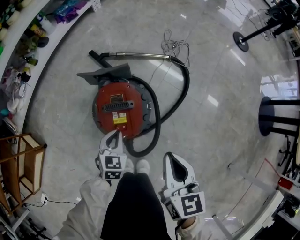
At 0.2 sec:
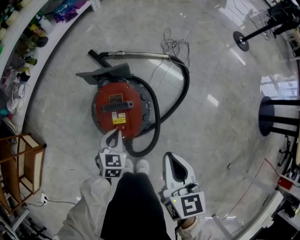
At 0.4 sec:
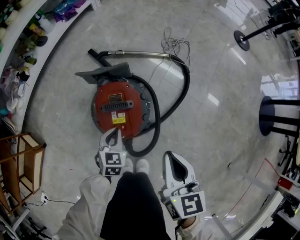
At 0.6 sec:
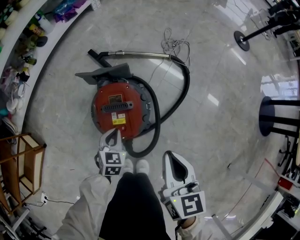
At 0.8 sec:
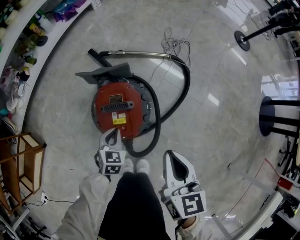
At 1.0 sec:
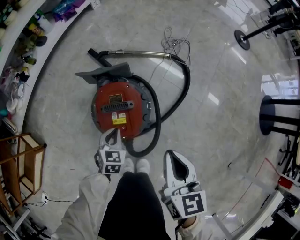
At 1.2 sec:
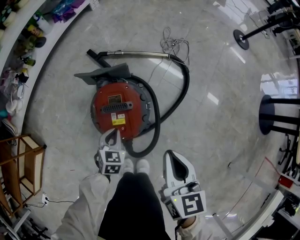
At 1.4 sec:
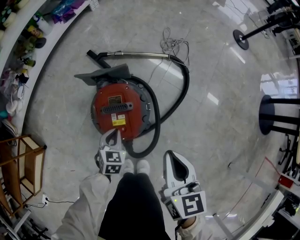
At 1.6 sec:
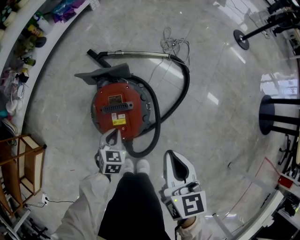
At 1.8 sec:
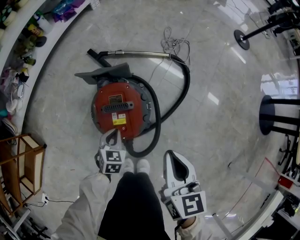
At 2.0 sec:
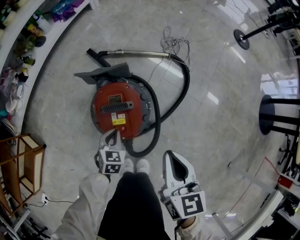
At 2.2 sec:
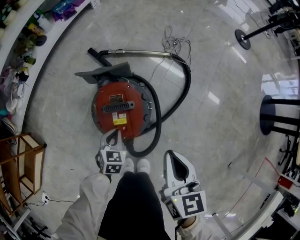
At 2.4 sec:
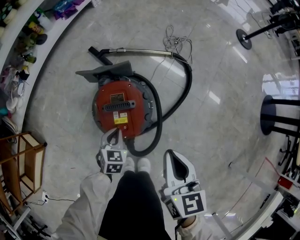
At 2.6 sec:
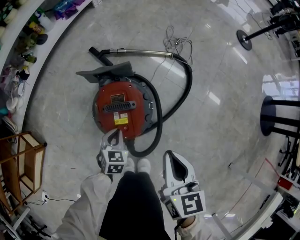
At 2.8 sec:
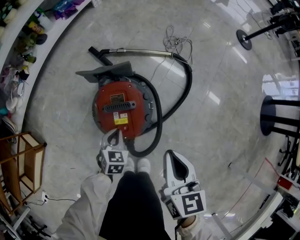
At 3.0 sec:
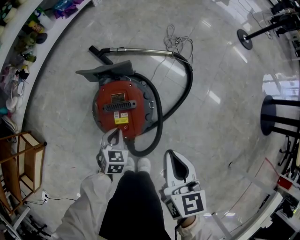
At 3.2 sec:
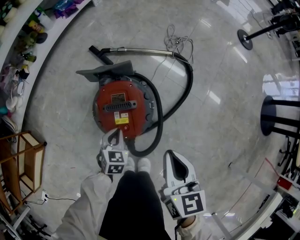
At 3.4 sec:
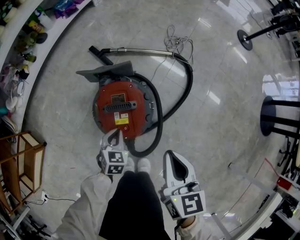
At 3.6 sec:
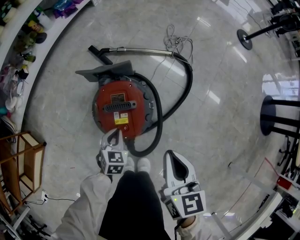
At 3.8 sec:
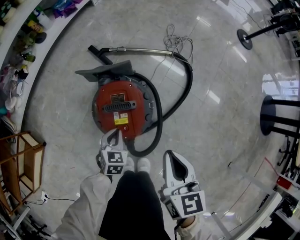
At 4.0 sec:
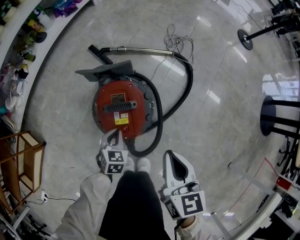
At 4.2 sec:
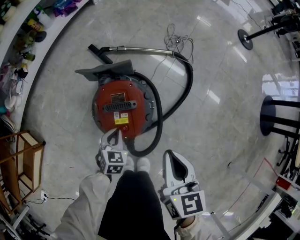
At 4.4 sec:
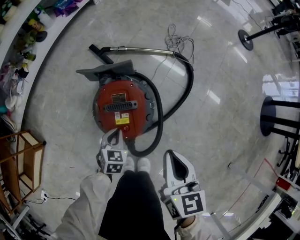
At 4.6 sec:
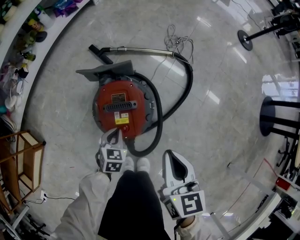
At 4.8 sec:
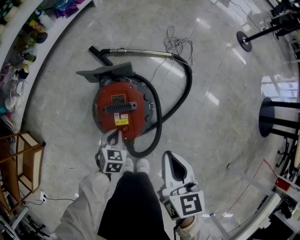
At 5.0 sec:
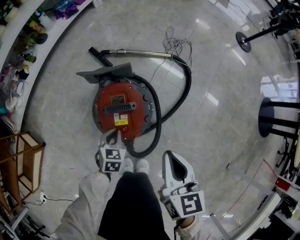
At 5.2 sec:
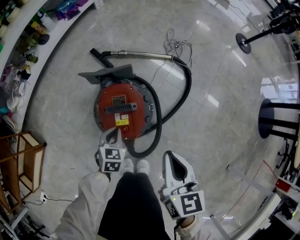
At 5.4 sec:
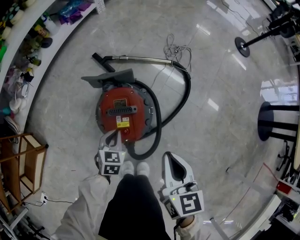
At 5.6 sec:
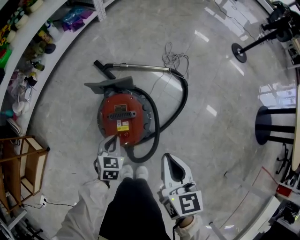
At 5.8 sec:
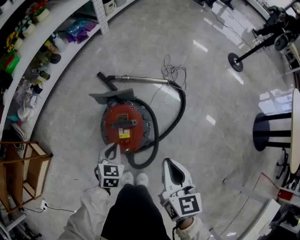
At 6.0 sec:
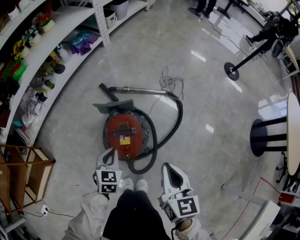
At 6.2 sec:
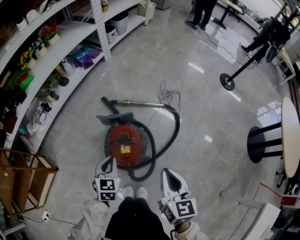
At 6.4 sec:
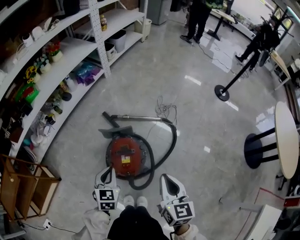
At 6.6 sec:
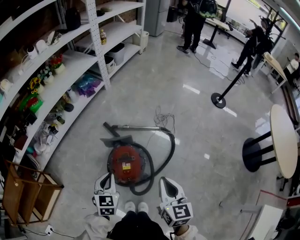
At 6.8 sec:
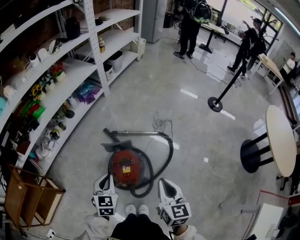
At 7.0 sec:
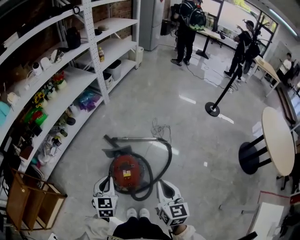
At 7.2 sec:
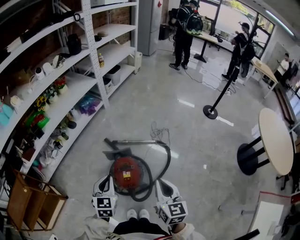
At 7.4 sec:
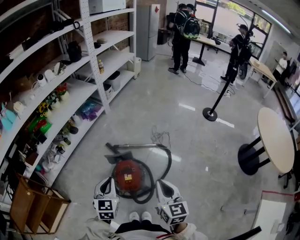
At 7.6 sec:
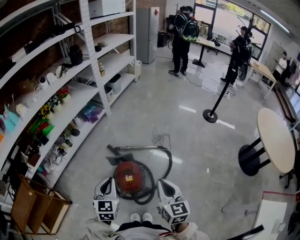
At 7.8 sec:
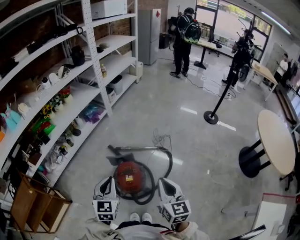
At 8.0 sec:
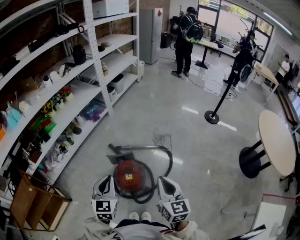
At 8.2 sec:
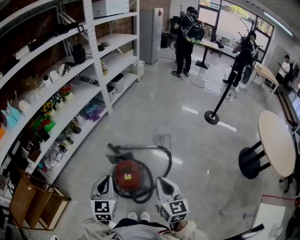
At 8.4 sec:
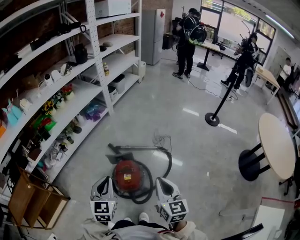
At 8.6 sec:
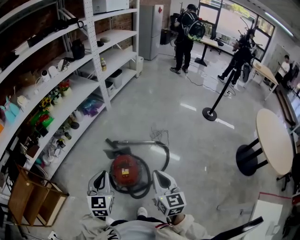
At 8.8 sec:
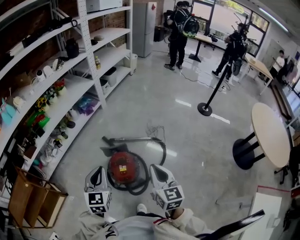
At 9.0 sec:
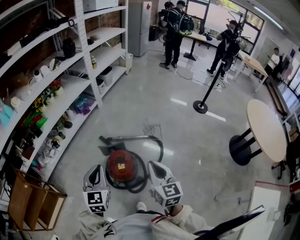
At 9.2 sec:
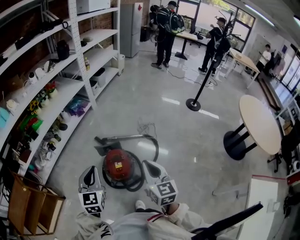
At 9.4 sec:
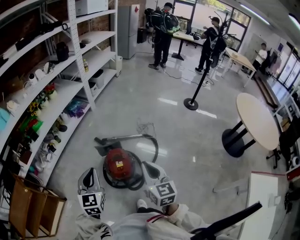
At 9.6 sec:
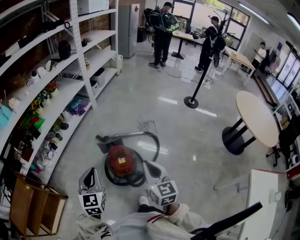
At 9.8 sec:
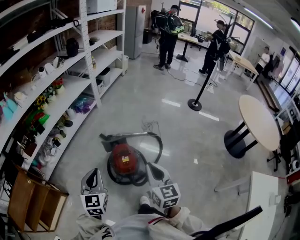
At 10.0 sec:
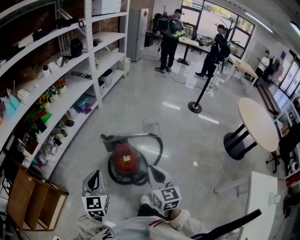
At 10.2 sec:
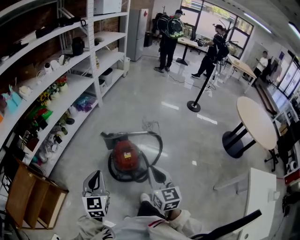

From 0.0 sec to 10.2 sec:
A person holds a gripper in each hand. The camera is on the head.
From 0.0 sec to 3.0 sec: The grippers move only a little.
From 3.0 sec to 4.4 sec: The two grippers keep their place.
From 4.4 sec to 5.8 sec: The left gripper shifts roughly 10 cm upward. Meanwhile the right gripper heads upward, covering roughly 5 cm.
From 5.8 sec to 7.2 sec: The right gripper is displaced upward by some 20 cm. Meanwhile the left gripper moves upward, roughly 30 cm, and rotates some 20 degrees.
From 7.2 sec to 8.8 sec: The left gripper heads upward, covering roughly 10 cm.
From 8.8 sec to 10.2 sec: Both grippers travel together backward and to the left, about 20 cm.

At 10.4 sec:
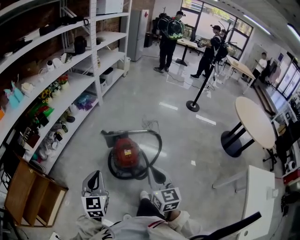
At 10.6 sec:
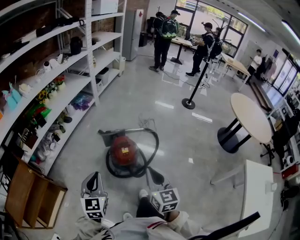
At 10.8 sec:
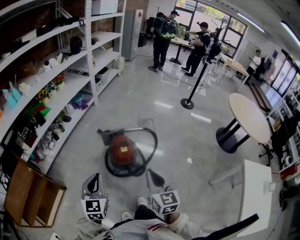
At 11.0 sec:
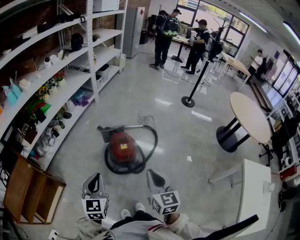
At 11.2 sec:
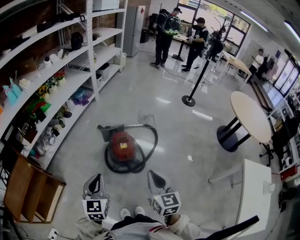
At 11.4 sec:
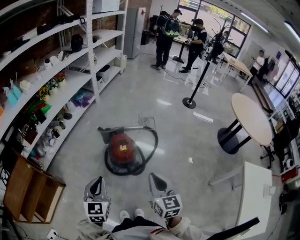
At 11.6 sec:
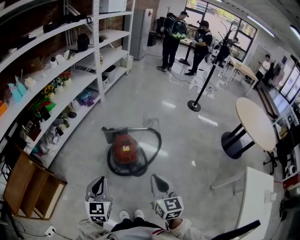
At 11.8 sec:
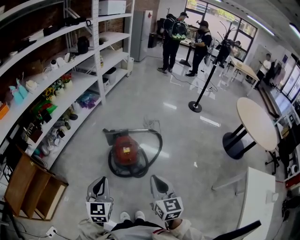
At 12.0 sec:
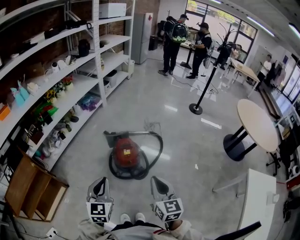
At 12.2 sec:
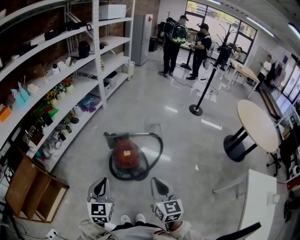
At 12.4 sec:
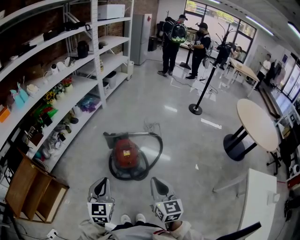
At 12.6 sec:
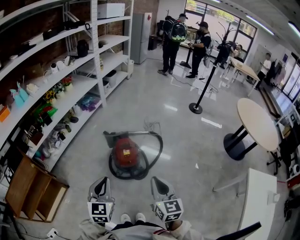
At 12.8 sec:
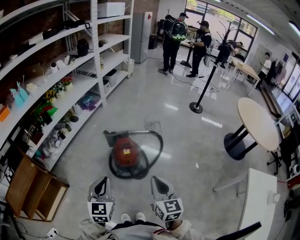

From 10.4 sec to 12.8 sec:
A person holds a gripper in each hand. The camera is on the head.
From 10.4 sec to 11.6 sec: Both grippers travel together backward, approximately 5 cm.
From 11.6 sec to 12.8 sec: The grippers stay close to where they were, moving slightly.

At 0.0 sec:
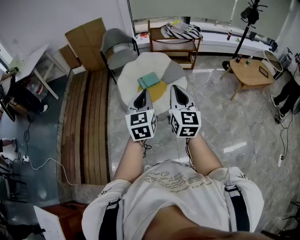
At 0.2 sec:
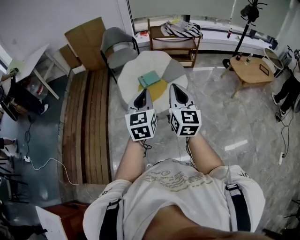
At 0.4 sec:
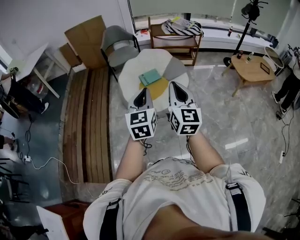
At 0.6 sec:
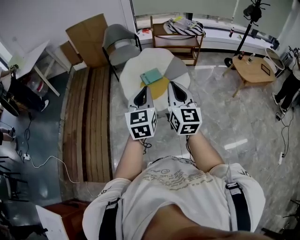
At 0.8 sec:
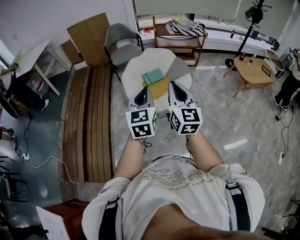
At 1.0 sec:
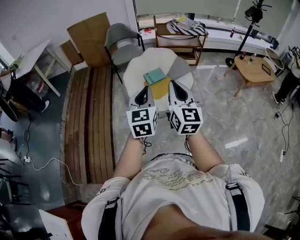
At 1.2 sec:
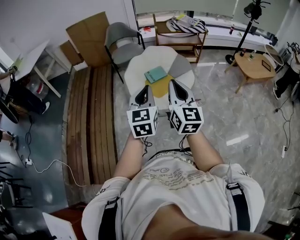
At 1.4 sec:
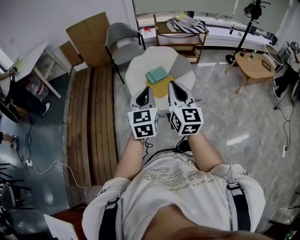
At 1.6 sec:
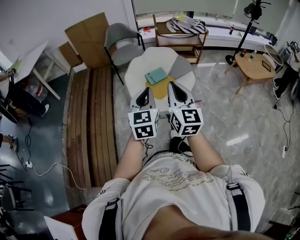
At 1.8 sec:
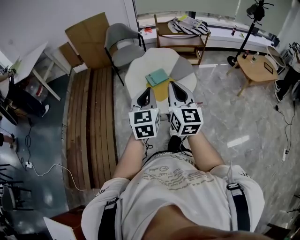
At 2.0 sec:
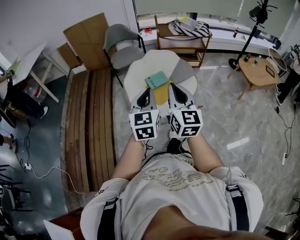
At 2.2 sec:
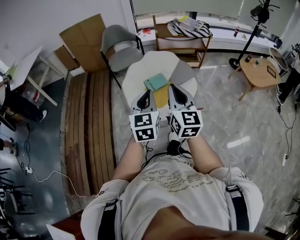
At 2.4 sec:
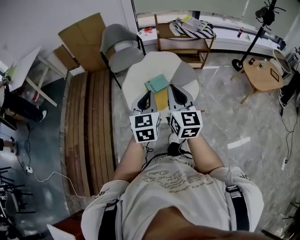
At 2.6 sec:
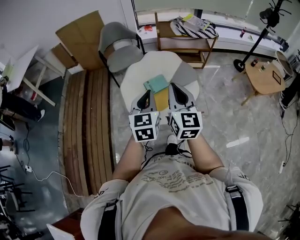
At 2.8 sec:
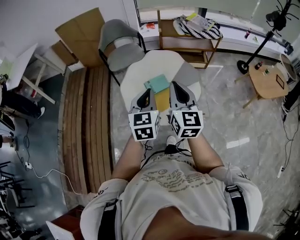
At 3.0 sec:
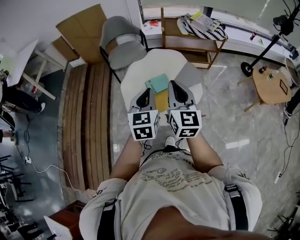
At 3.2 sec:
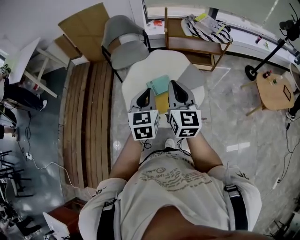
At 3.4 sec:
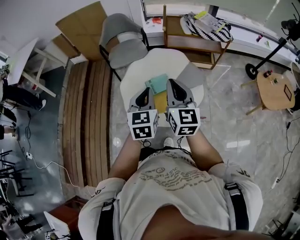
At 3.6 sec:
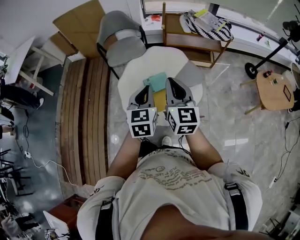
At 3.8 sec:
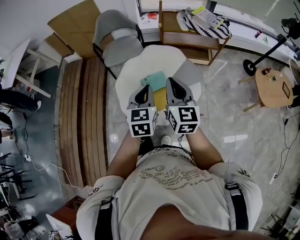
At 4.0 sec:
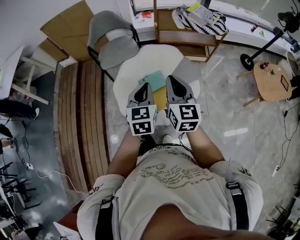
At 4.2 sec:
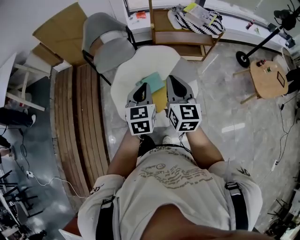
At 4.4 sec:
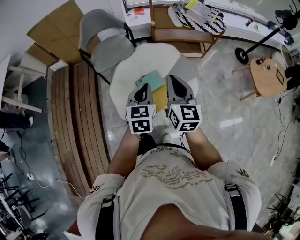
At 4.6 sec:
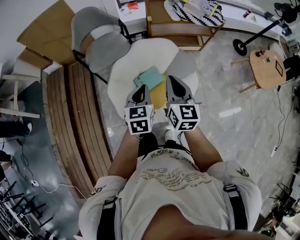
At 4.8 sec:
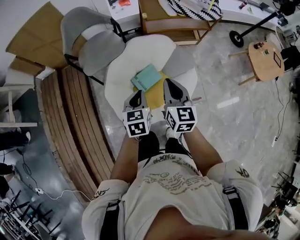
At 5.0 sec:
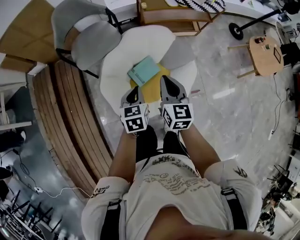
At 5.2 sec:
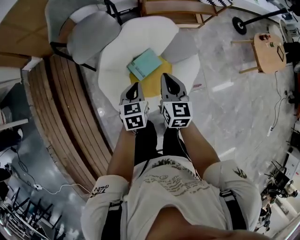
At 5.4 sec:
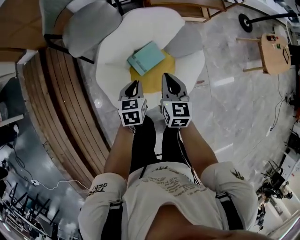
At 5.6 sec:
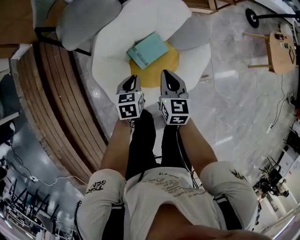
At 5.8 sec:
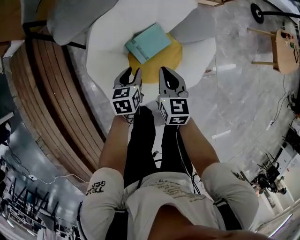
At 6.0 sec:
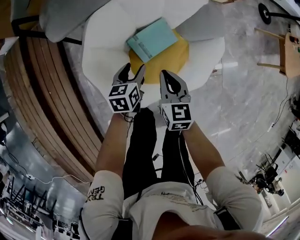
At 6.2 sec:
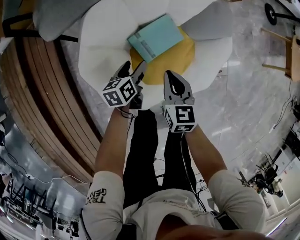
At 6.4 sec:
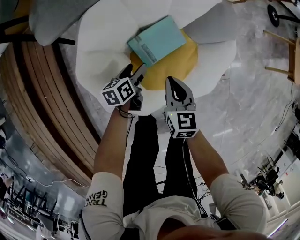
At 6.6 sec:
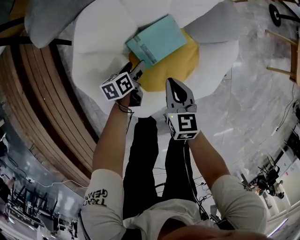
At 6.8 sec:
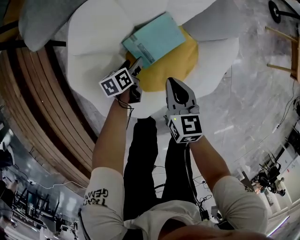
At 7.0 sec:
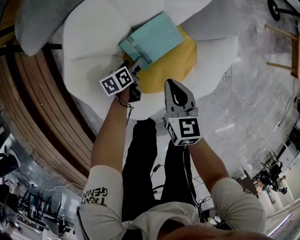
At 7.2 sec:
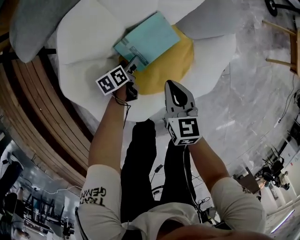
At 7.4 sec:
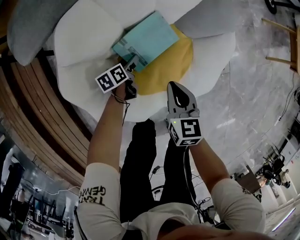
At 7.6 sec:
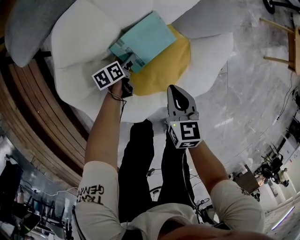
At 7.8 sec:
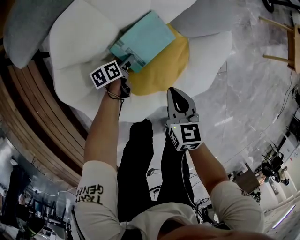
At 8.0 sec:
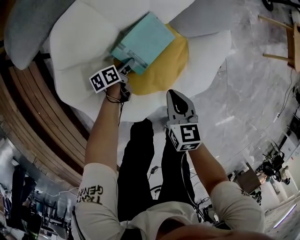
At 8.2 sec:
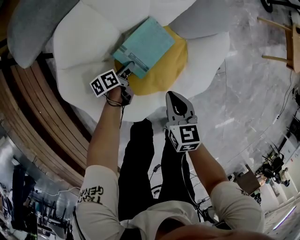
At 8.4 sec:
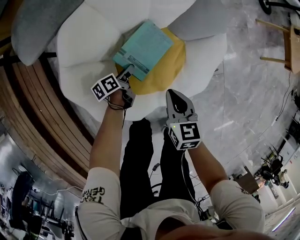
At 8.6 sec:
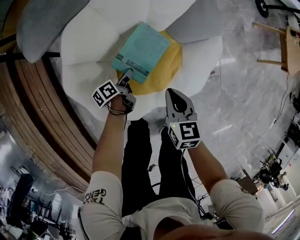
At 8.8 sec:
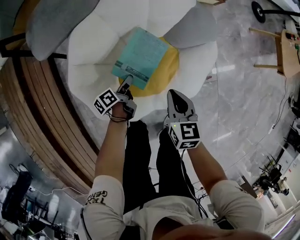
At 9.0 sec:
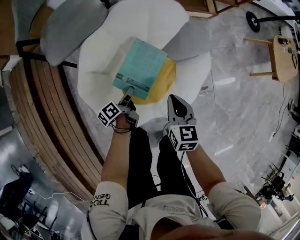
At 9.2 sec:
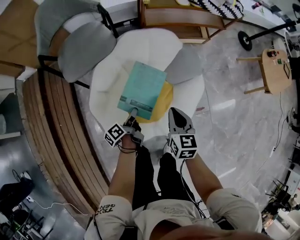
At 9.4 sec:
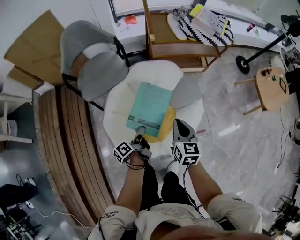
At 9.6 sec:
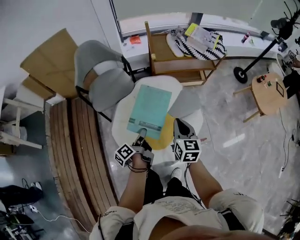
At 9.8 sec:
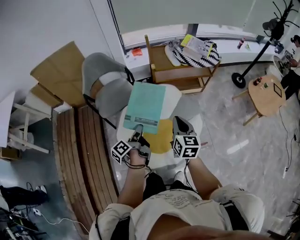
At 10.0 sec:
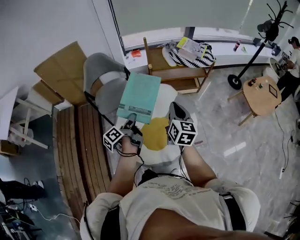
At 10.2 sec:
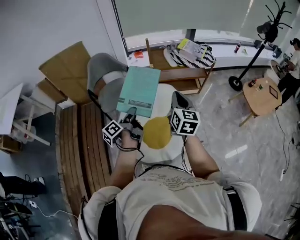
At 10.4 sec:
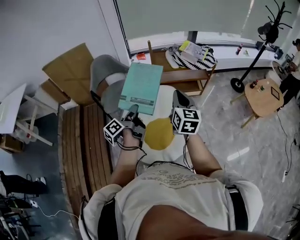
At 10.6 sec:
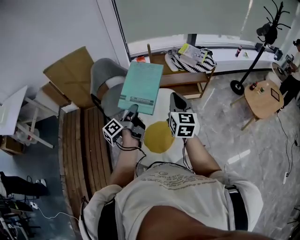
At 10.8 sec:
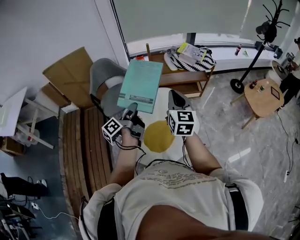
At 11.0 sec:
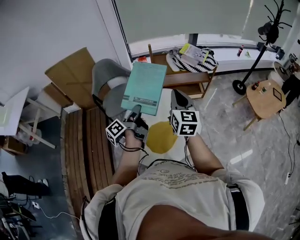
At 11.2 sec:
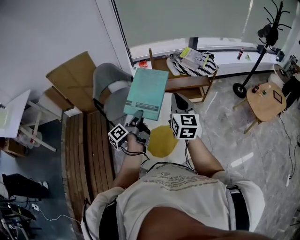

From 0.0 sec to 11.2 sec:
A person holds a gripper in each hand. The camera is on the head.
From 0.0 sec to 1.6 sec: Both grippers move to the left, about 10 cm.
From 1.6 sec to 3.2 sec: Both grippers move forward, approximately 35 cm.
From 3.2 sec to 4.8 sec: Both grippers move forward and downward, roughly 25 cm. The left gripper swivels some 20 degrees.
From 4.8 sec to 6.4 sec: Both grippers move downward, roughly 50 cm. The right gripper rotates approximately 20 degrees. Meanwhile the left gripper swivels roughly 40 degrees, and opens up.
From 6.4 sec to 8.0 sec: The left gripper shifts roughly 10 cm downward; the right gripper travels to the right by roughly 5 cm.
From 8.0 sec to 9.6 sec: Both grippers move upward, roughly 40 cm. The right gripper turns by some 20 degrees, while the left gripper changes its angle by roughly 40 degrees.
From 9.6 sec to 11.2 sec: Both grippers travel together upward, approximately 25 cm. The right gripper rotates approximately 20 degrees.
